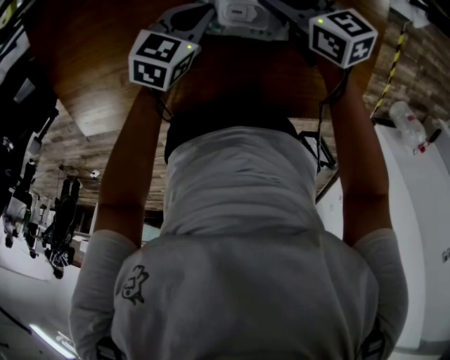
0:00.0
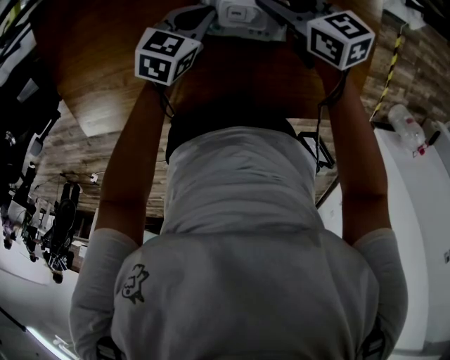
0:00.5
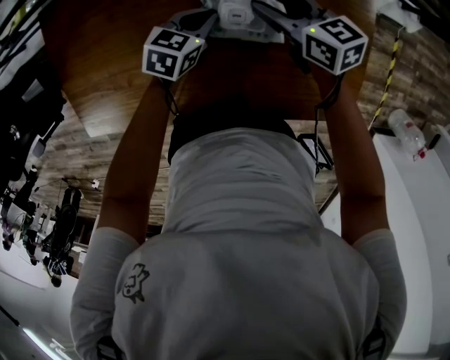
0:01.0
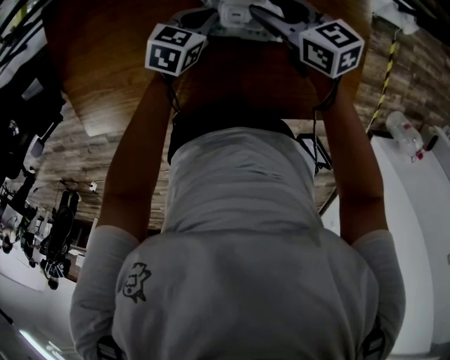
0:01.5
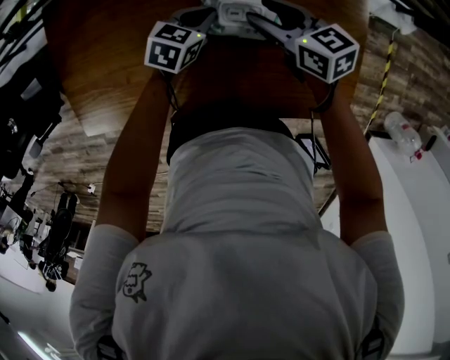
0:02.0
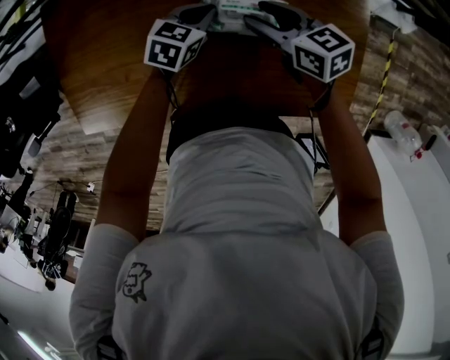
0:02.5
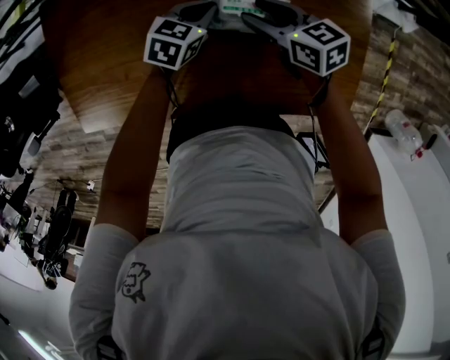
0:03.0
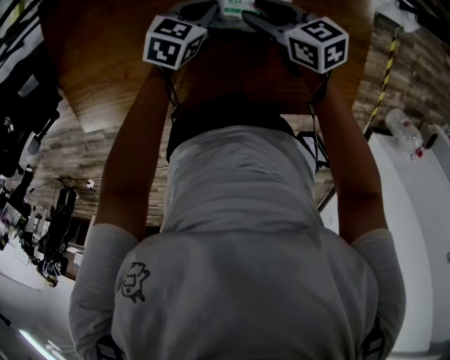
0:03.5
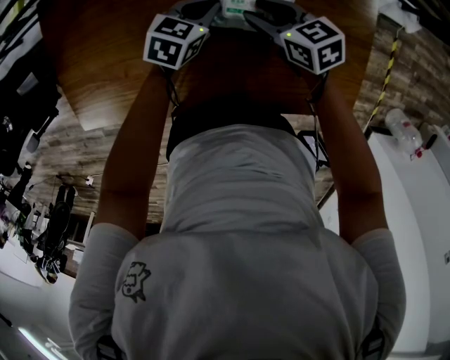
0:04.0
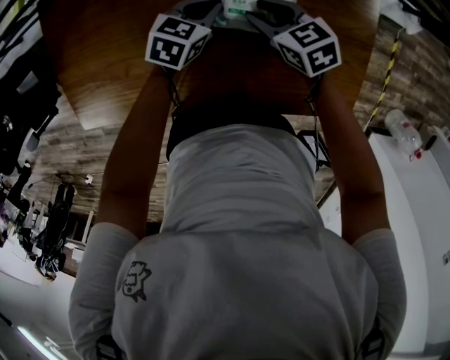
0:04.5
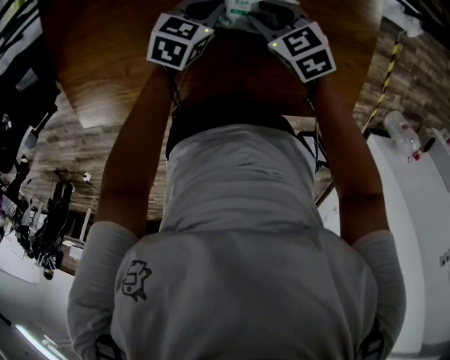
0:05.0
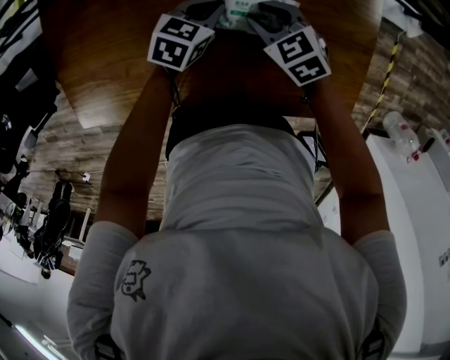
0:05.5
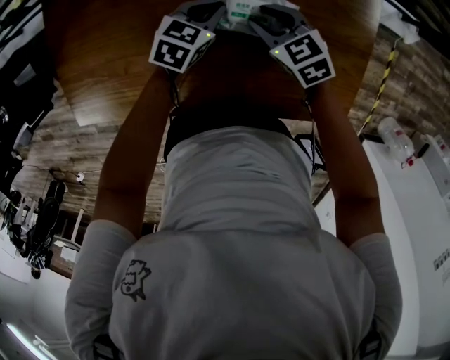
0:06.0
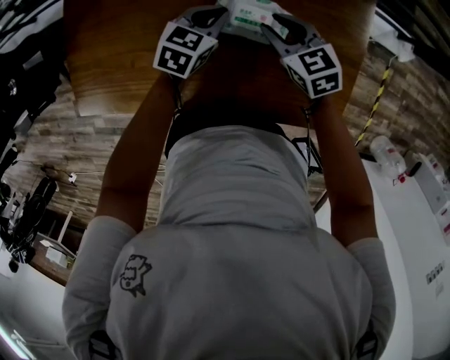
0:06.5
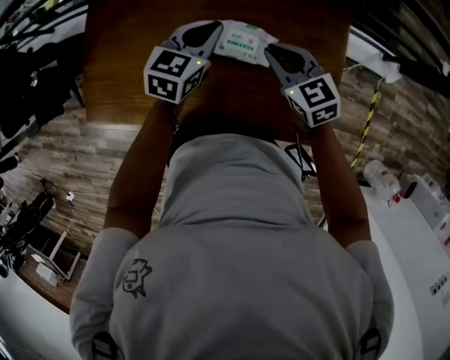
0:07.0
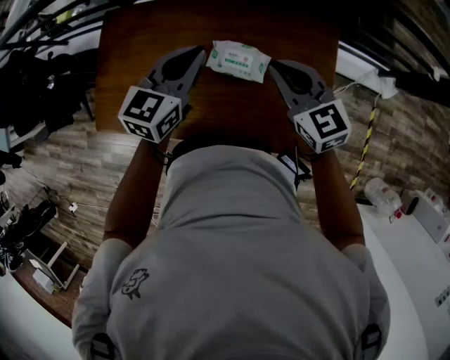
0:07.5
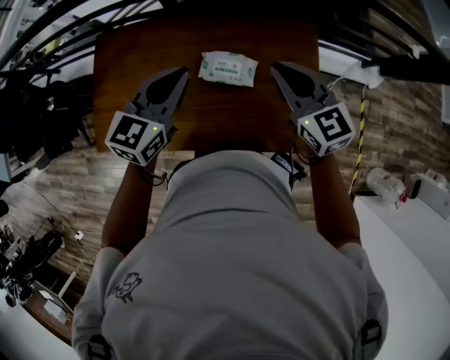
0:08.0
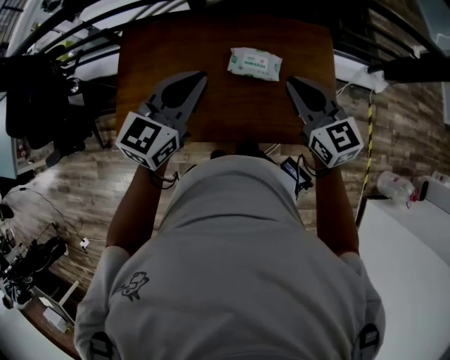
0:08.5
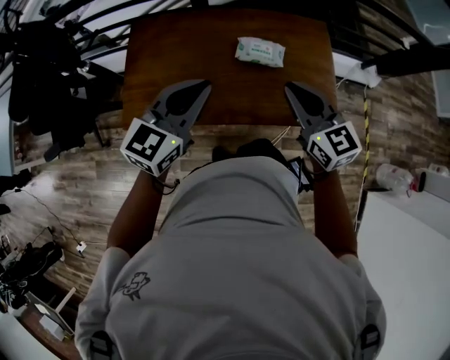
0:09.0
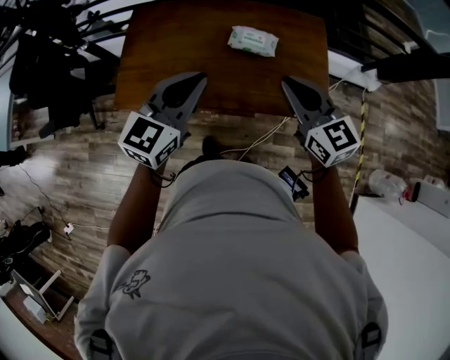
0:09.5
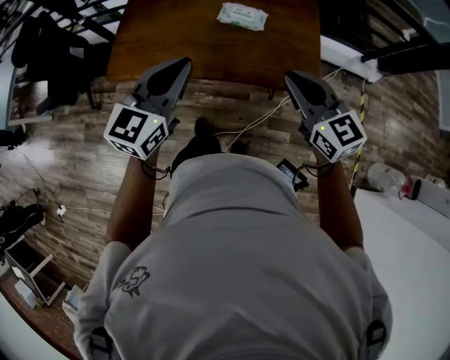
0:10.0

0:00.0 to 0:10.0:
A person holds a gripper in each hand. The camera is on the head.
0:00.0 to 0:02.0: The right gripper changes place by roughly 5 cm.
0:02.0 to 0:04.0: The right gripper goes about 5 cm downward.
0:04.0 to 0:06.0: The right gripper rotates about 20 degrees.
0:06.0 to 0:08.0: The grippers both shift upward by about 30 cm. The left gripper turns by some 30 degrees, while the right gripper swivels some 30 degrees, and closes up.
0:08.0 to 0:10.0: The grippers both shift backward by some 35 cm.

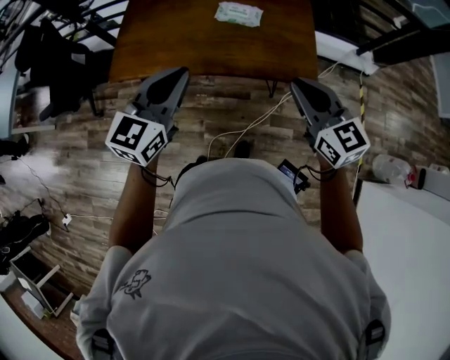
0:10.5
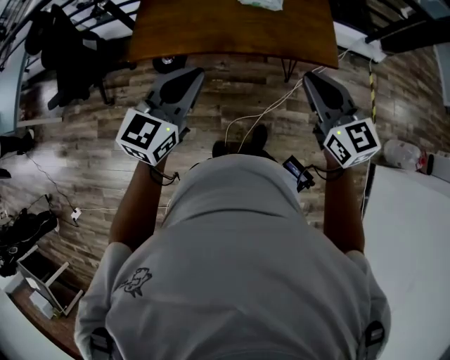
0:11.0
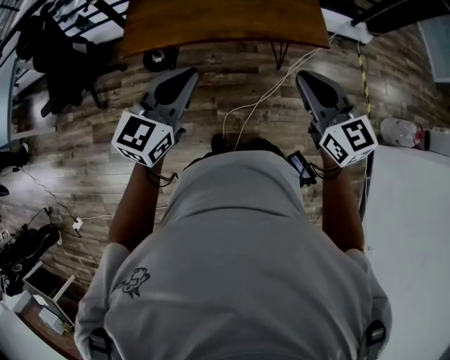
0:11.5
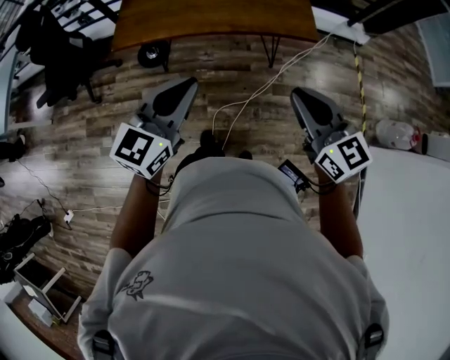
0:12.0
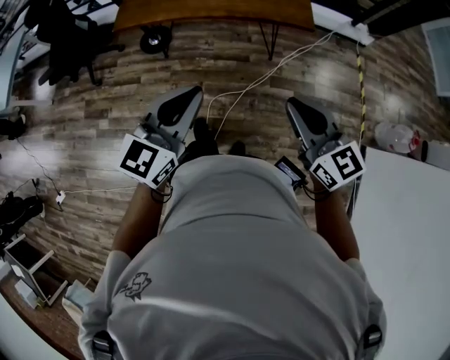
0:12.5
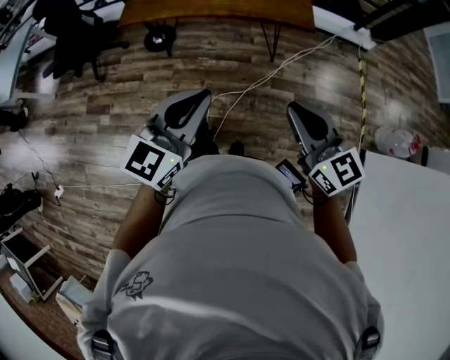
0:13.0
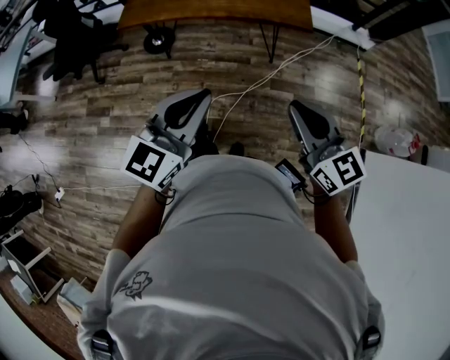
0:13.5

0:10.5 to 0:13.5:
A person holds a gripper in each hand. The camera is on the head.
0:10.5 to 0:12.0: The grippers both shift backward by roughly 25 cm.
0:12.0 to 0:13.5: The grippers both shift backward and to the right by about 15 cm.

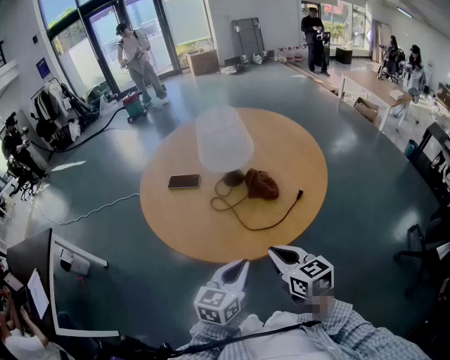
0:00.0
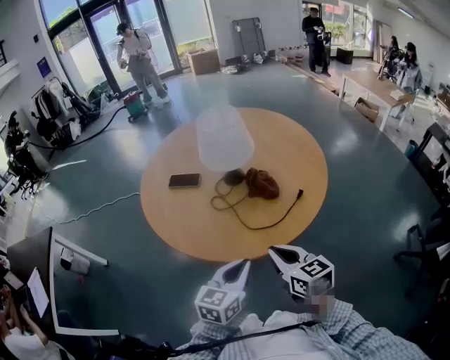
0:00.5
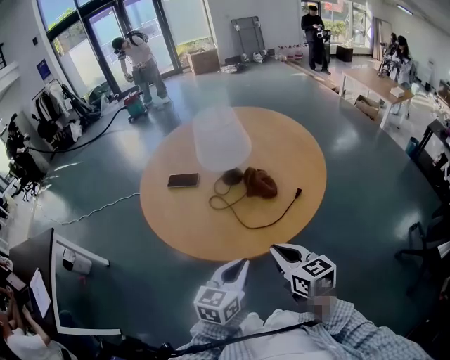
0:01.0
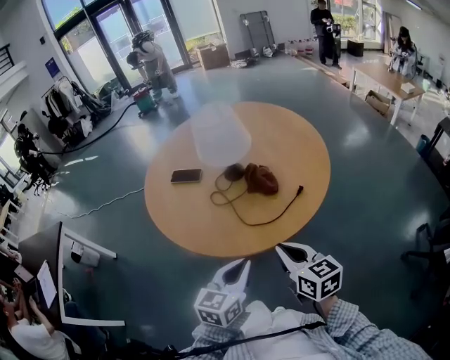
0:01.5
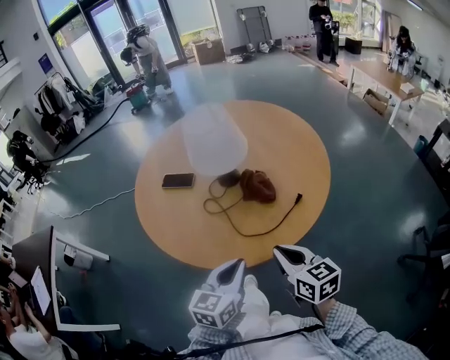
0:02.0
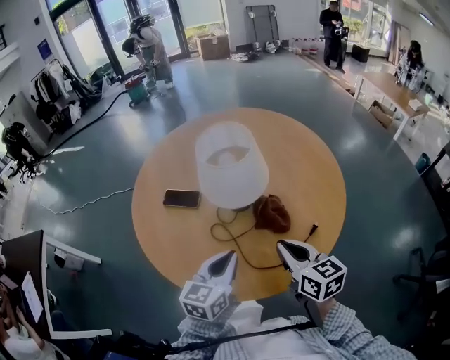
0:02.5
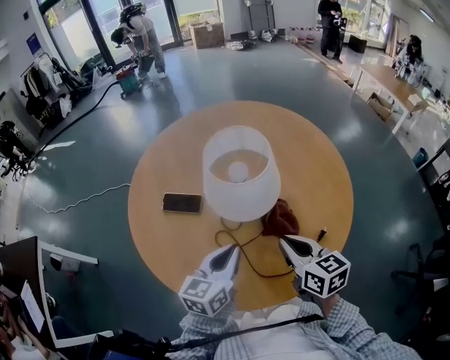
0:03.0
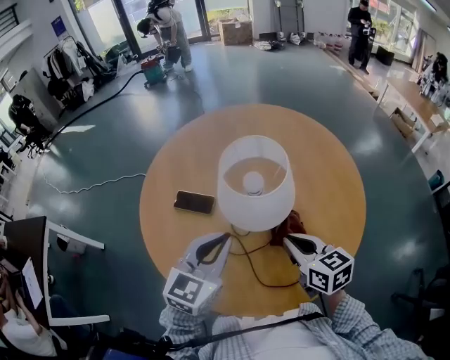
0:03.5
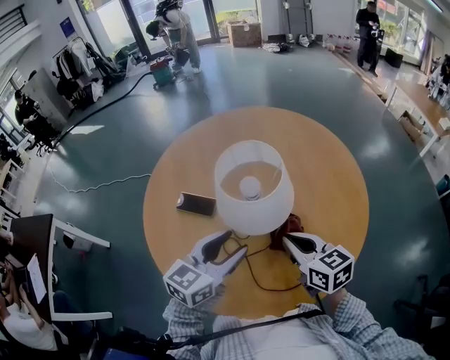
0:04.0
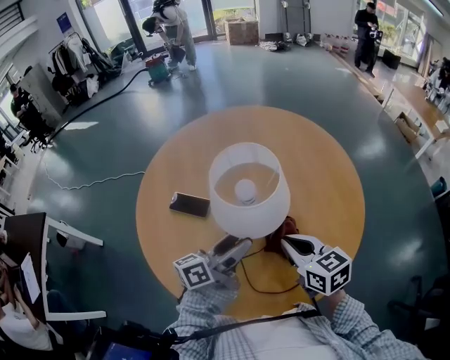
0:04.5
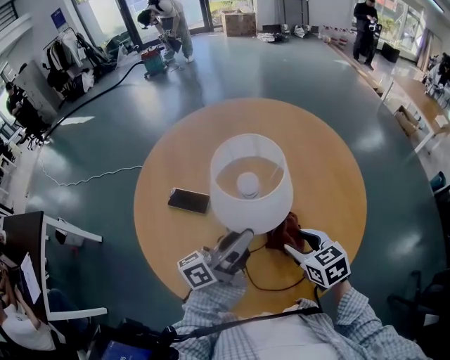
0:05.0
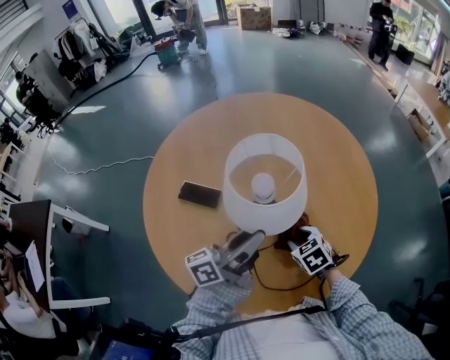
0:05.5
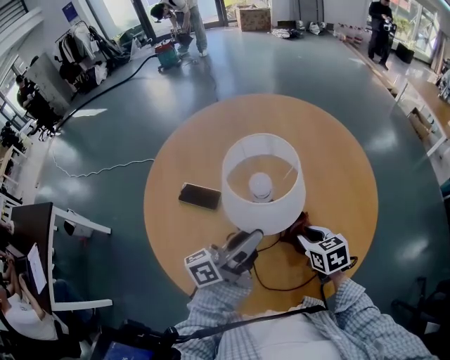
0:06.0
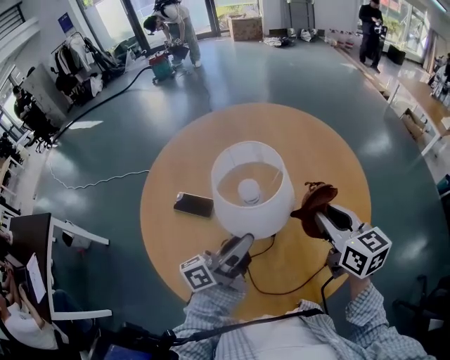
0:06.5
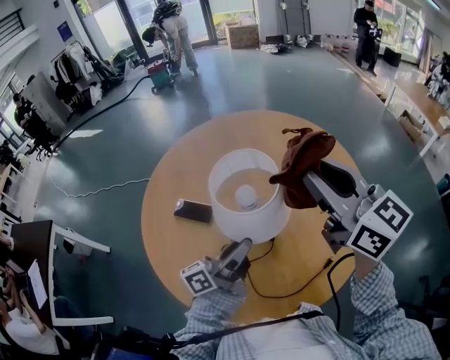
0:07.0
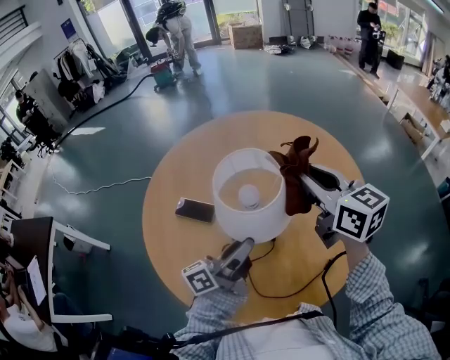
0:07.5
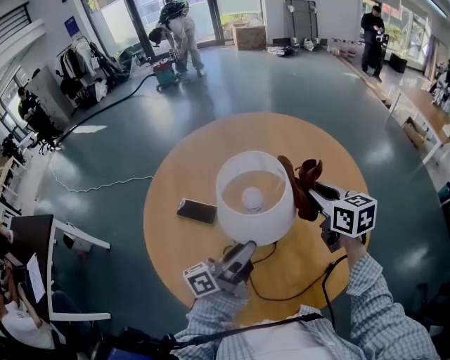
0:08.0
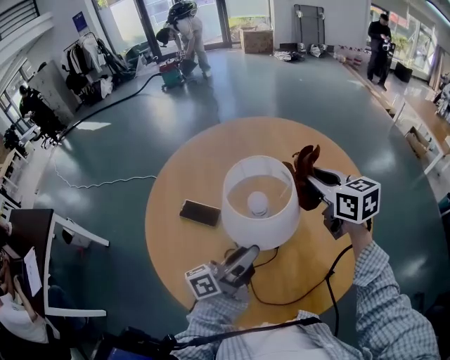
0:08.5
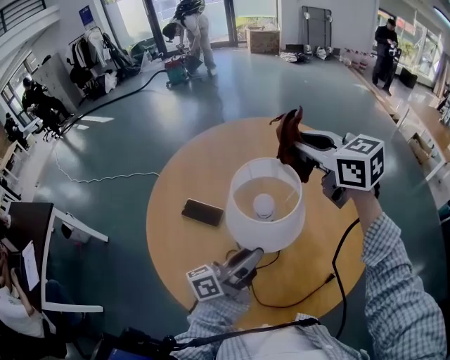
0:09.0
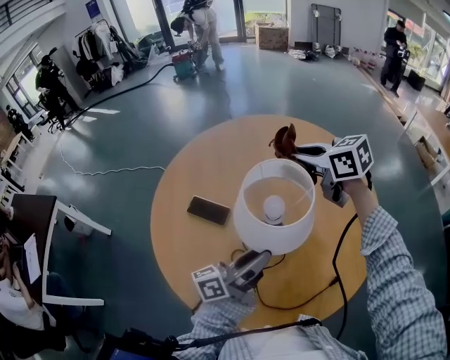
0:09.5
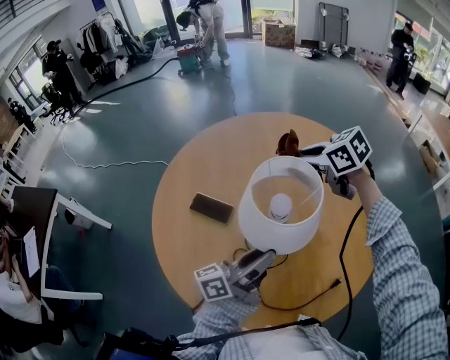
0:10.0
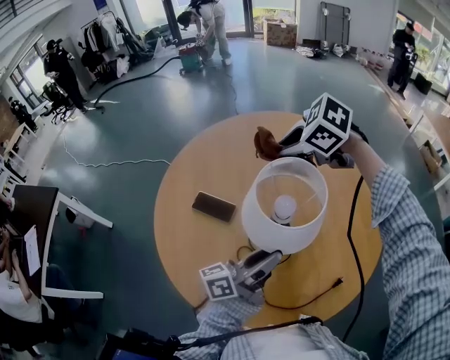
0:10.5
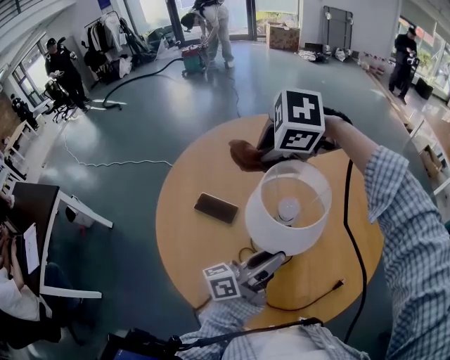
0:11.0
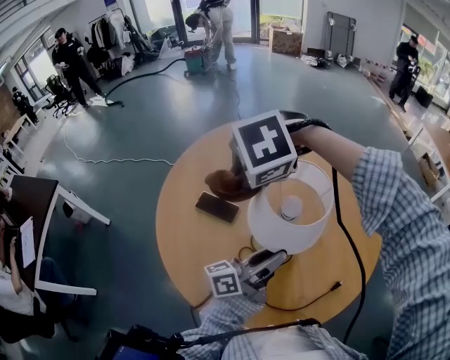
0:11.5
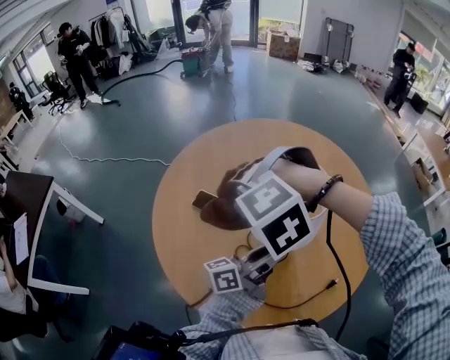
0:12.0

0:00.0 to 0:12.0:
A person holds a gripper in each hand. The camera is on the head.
0:00.0 to 0:02.0: The right gripper goes roughly 5 cm to the right.
0:02.0 to 0:04.0: The grippers both shift forward by about 20 cm. The left gripper opens its fingers.
0:04.0 to 0:06.0: The left gripper rotates around the line of its fingers by some 40 degrees, counterclockwise from behind, and opens, then closes again. Meanwhile the right gripper shifts some 10 cm downward, swivels about 20 degrees, and opens and closes again.
0:06.0 to 0:08.0: The right gripper goes some 20 cm upward and forward, and changes its angle by roughly 20 degrees.
0:08.0 to 0:10.0: The right gripper travels forward and to the left by about 15 cm, moves approximately 15 cm upward and comes back, and changes its angle by roughly 40 degrees.
0:10.0 to 0:12.0: The right gripper ends up about 25 cm from where it was, and rolls counterclockwise, seen from behind, by approximately 90 degrees.

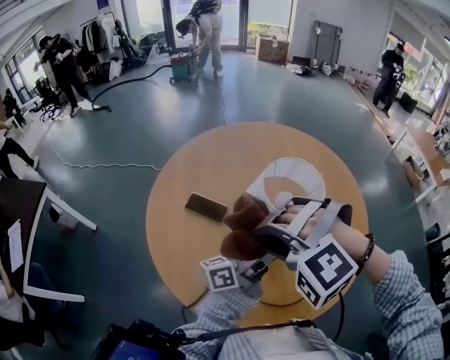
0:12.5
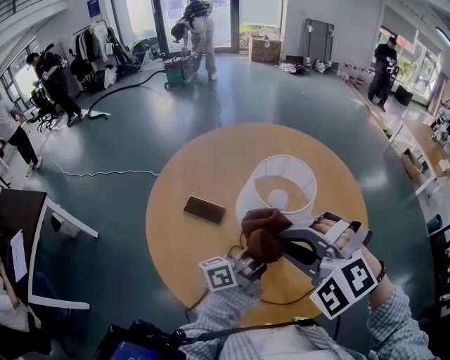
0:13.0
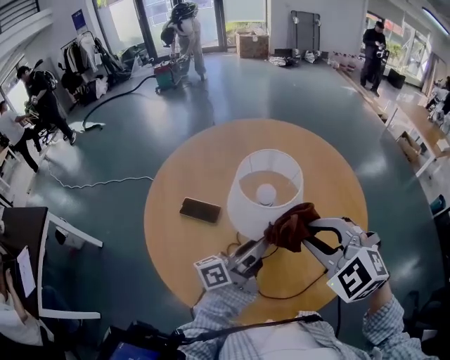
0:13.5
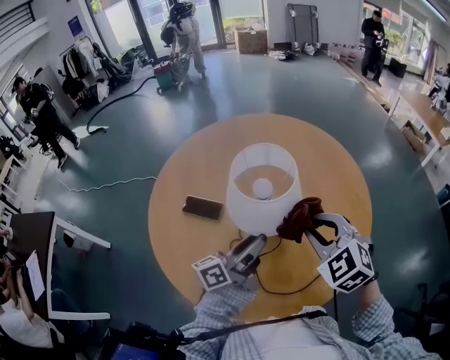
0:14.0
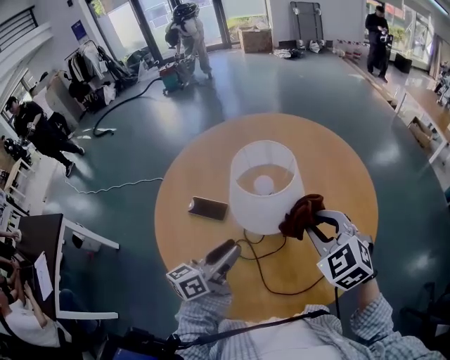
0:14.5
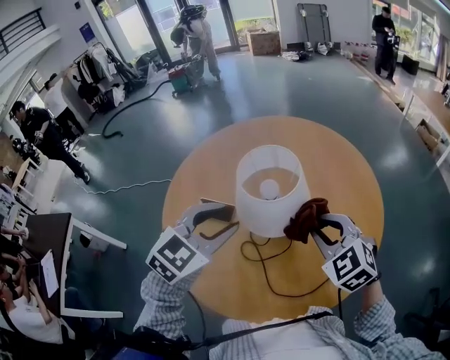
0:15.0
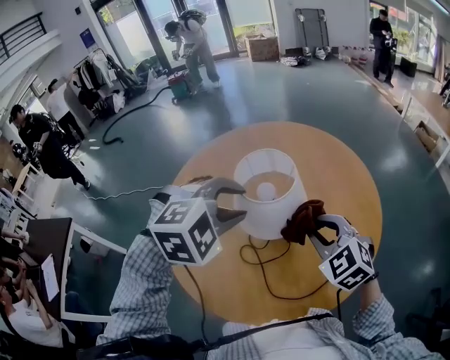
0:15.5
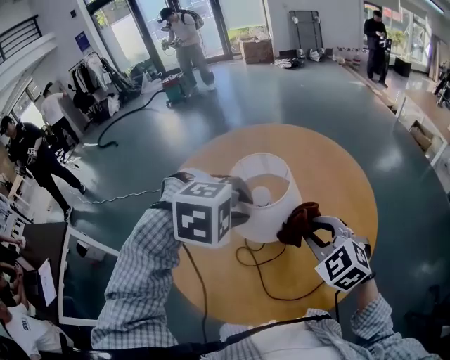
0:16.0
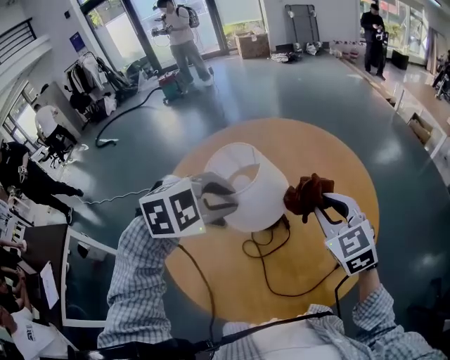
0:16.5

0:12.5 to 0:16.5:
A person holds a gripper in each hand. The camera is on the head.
0:12.5 to 0:14.5: The left gripper moves to the left, approximately 10 cm, and rotates roughly 30 degrees, while the right gripper heads to the right, covering approximately 15 cm, and twists about 60 degrees clockwise, seen from behind.
0:14.5 to 0:16.5: The right gripper ends up some 5 cm from where it was. The left gripper heads upward and forward, covering some 15 cm, and points its fingers roughly 50 degrees further downward.
